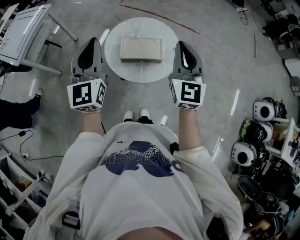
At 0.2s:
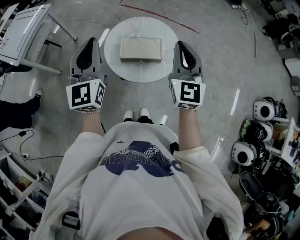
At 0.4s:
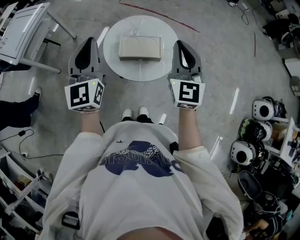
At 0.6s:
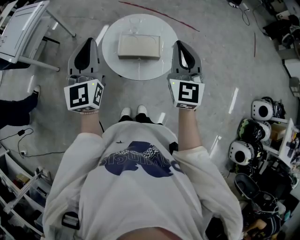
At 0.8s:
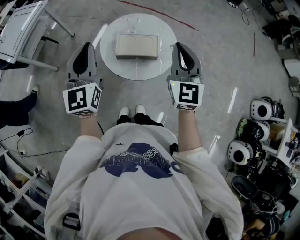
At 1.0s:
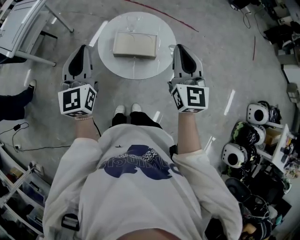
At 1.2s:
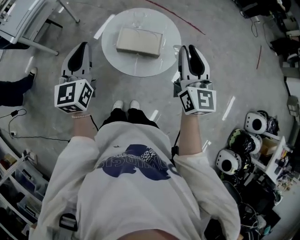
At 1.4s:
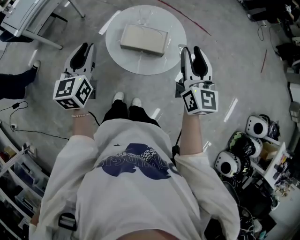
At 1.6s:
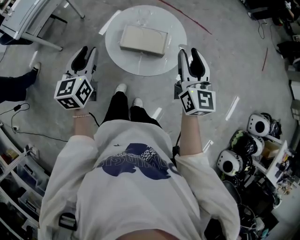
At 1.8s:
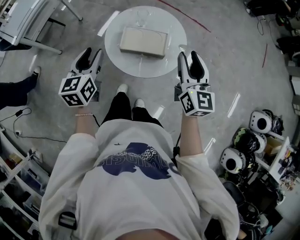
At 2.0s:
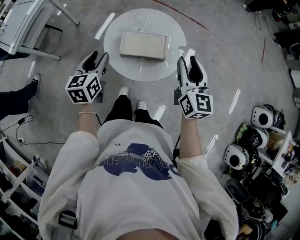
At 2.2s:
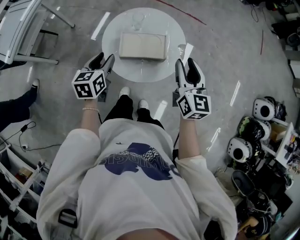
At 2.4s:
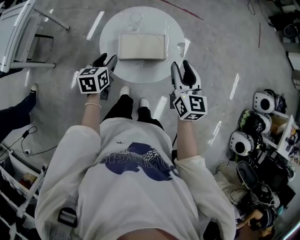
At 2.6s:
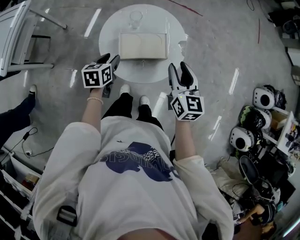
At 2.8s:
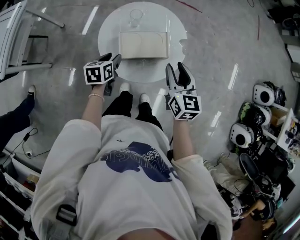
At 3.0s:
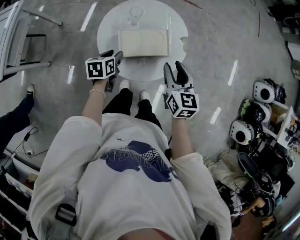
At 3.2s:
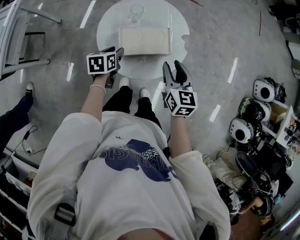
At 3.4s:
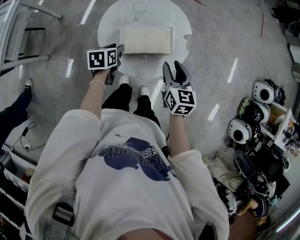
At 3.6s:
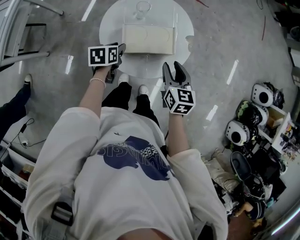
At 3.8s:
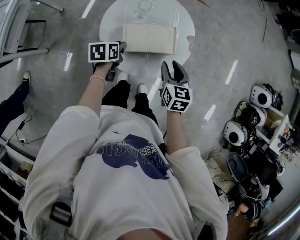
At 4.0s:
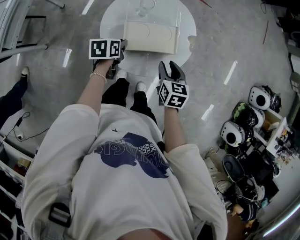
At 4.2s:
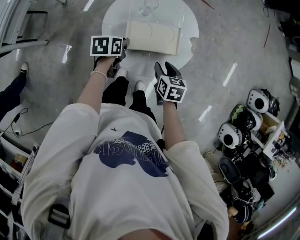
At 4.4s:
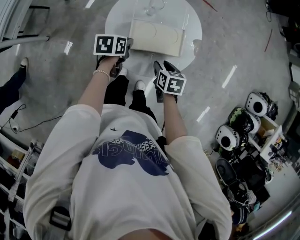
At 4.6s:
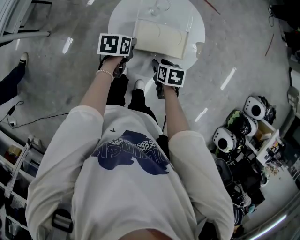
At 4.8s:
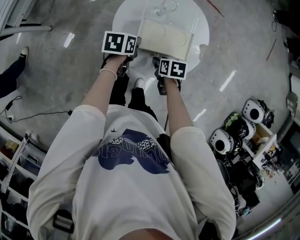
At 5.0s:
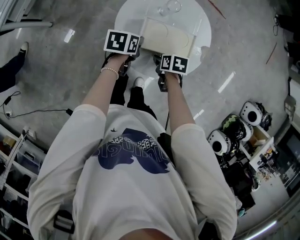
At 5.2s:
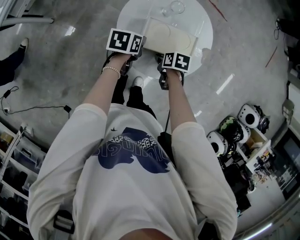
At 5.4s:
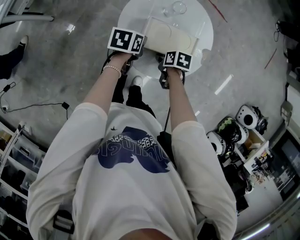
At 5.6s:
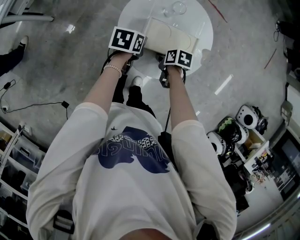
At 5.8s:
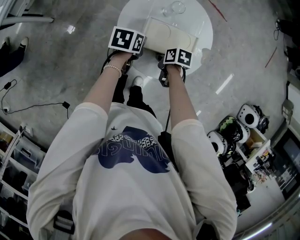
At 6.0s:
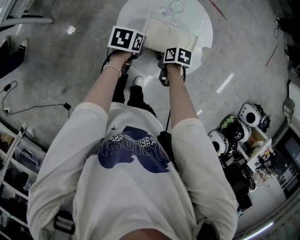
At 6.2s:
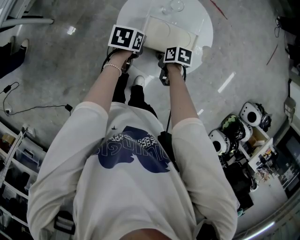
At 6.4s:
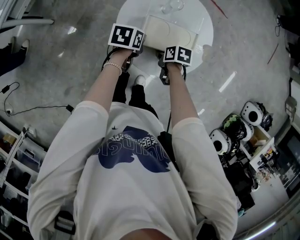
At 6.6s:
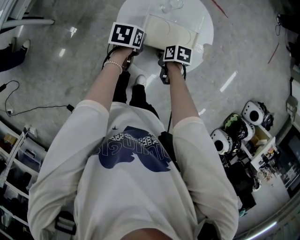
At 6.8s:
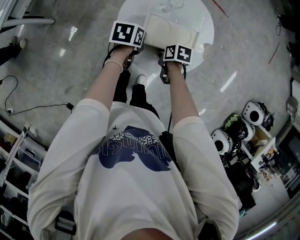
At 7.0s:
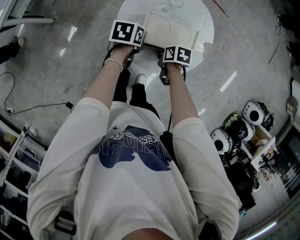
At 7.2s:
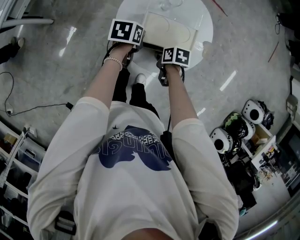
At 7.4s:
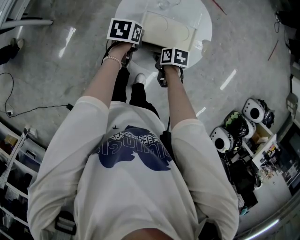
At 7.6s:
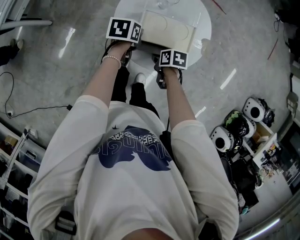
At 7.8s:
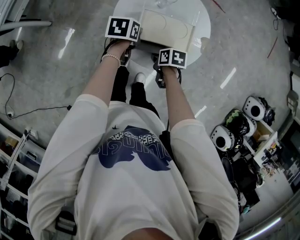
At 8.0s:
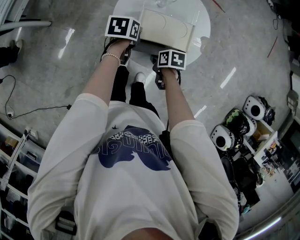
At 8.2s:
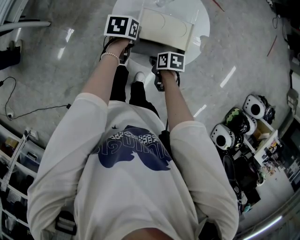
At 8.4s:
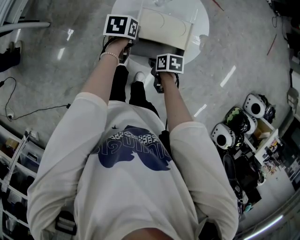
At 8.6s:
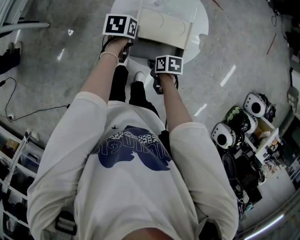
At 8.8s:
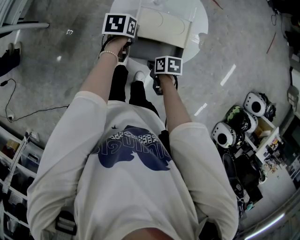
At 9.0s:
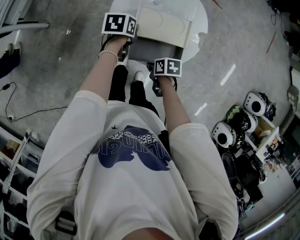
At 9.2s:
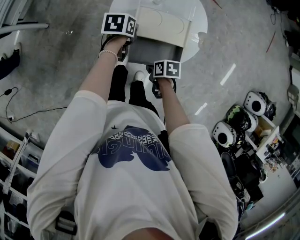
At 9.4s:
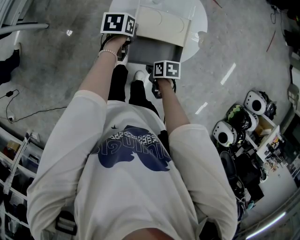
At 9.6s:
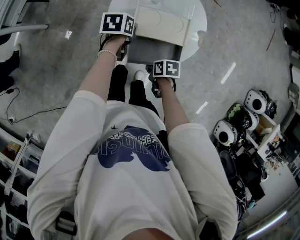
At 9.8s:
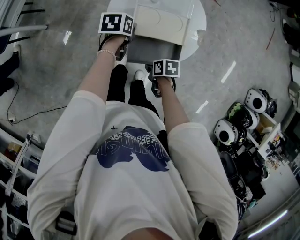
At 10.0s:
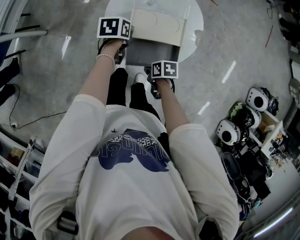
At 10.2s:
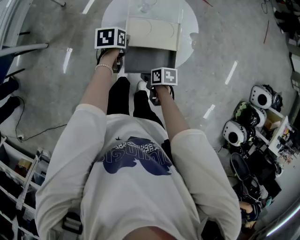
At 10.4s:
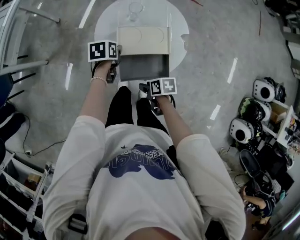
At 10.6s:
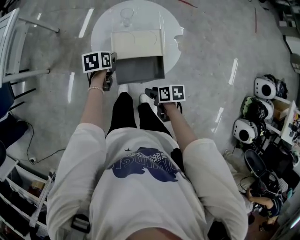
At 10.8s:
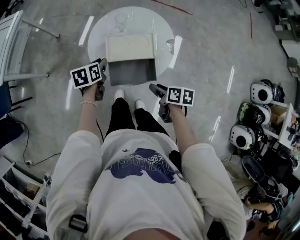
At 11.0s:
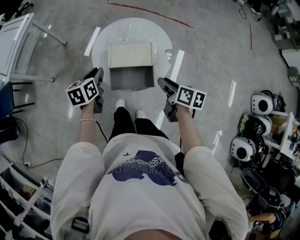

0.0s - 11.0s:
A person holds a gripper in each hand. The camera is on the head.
0.0s - 1.6s: The left gripper moves downward, approximately 10 cm, rotates about 30 degrees, and opens. The right gripper goes roughly 5 cm downward, changes its angle by some 20 degrees, and opens up.
1.6s - 3.2s: Both grippers travel together downward, about 25 cm. The right gripper swivels approximately 30 degrees. The left gripper tilts its fingers some 30 degrees downward.
3.2s - 4.8s: The right gripper is displaced downward by some 20 cm, and tips its fingers downward by roughly 40 degrees. Meanwhile the left gripper closes.
4.8s - 6.2s: The right gripper closes.
6.2s - 7.8s: There are only small adjustments of the grippers.
7.8s - 9.4s: The right gripper shifts by roughly 10 cm.
9.4s - 11.0s: Both grippers move upward, roughly 20 cm. The left gripper swivels some 30 degrees, while the right gripper turns by about 40 degrees, and opens its fingers.

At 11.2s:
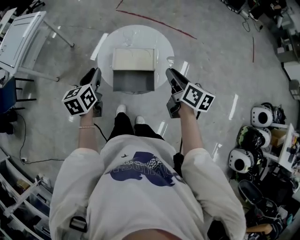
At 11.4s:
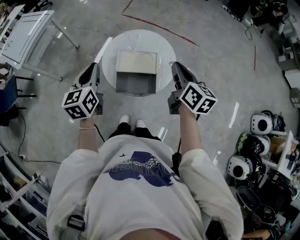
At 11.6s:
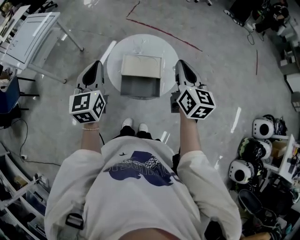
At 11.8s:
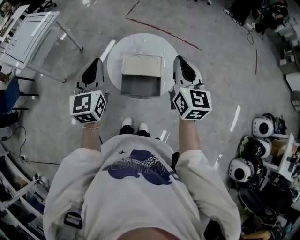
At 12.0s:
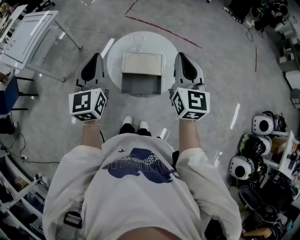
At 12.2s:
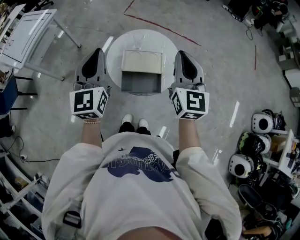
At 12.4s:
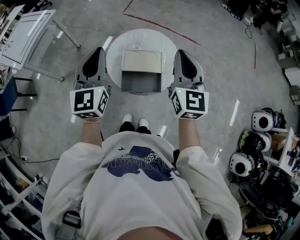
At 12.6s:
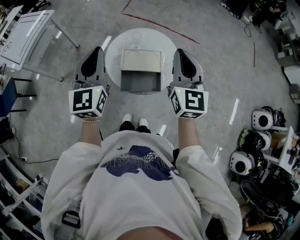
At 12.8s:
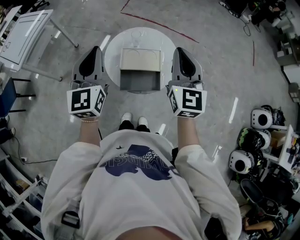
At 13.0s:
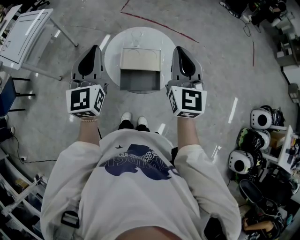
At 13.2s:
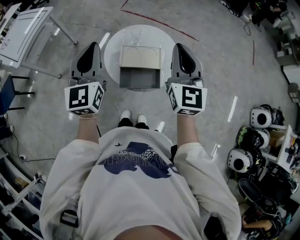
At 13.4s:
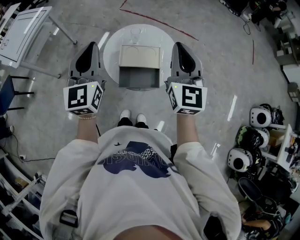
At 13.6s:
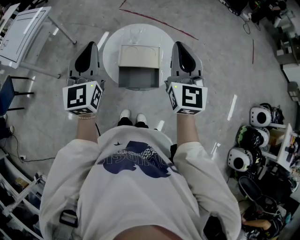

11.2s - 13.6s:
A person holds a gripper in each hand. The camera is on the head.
11.2s - 12.4s: The left gripper is displaced upward by some 15 cm, and changes its angle by approximately 40 degrees. The right gripper travels upward and to the left by roughly 20 cm, and rotates around the line of its fingers by roughly 50 degrees, counterclockwise from behind.
12.4s - 13.6s: Both grippers stay put.

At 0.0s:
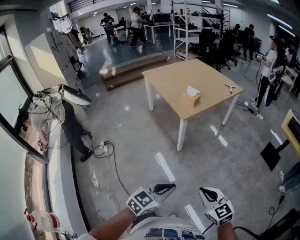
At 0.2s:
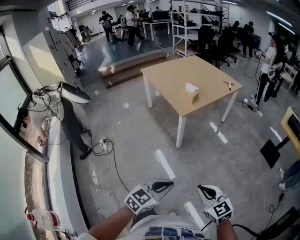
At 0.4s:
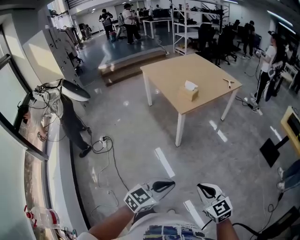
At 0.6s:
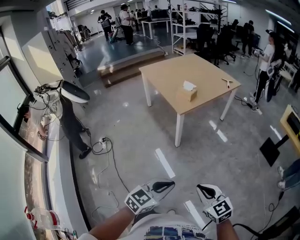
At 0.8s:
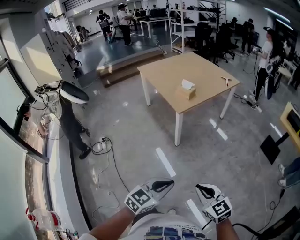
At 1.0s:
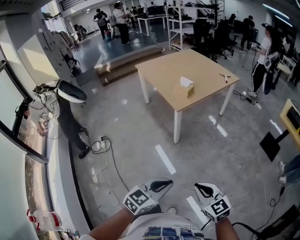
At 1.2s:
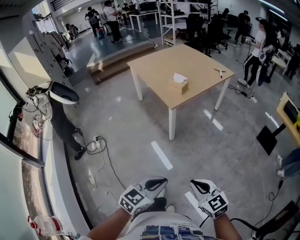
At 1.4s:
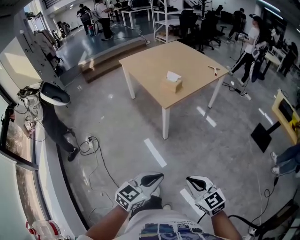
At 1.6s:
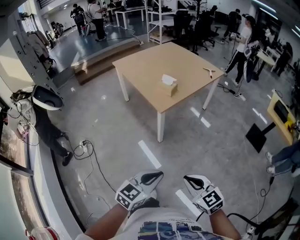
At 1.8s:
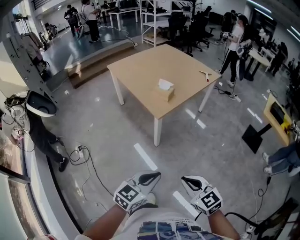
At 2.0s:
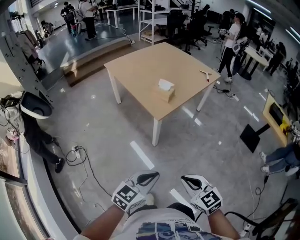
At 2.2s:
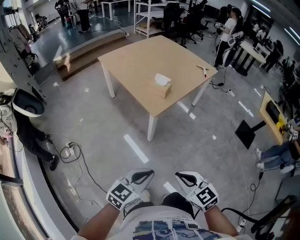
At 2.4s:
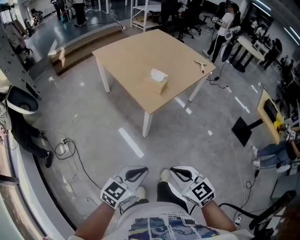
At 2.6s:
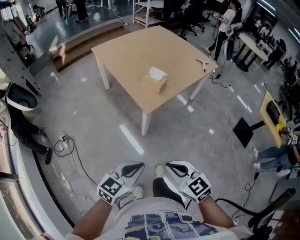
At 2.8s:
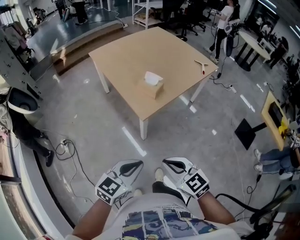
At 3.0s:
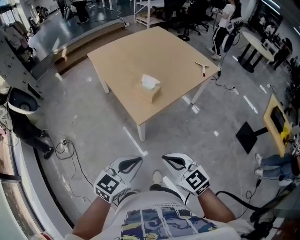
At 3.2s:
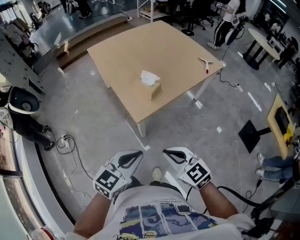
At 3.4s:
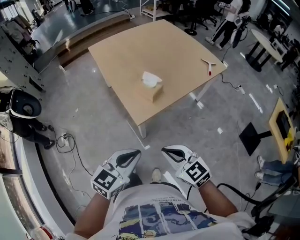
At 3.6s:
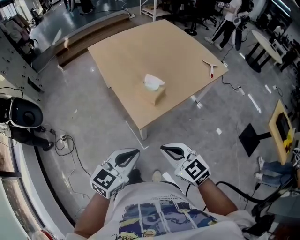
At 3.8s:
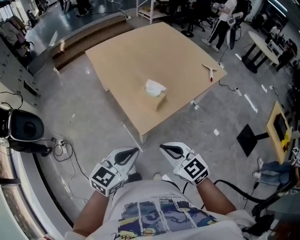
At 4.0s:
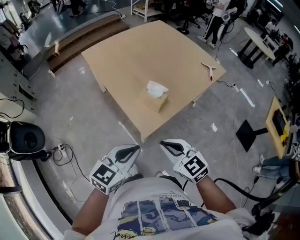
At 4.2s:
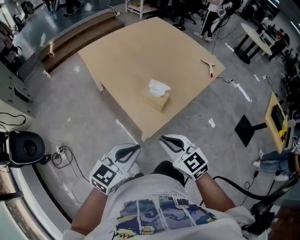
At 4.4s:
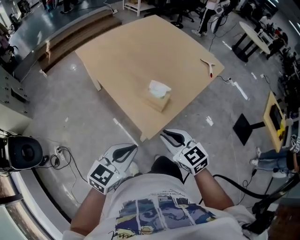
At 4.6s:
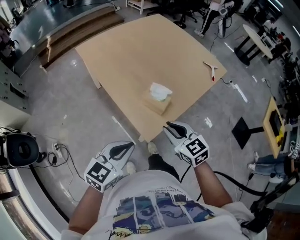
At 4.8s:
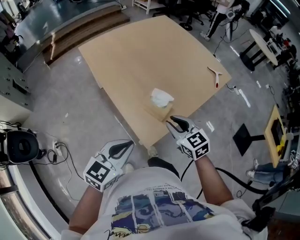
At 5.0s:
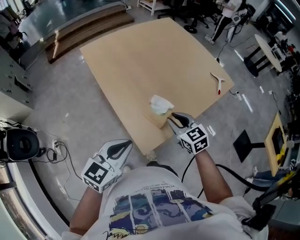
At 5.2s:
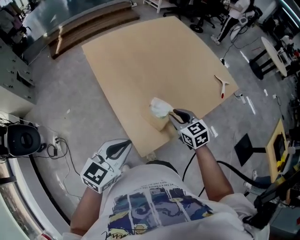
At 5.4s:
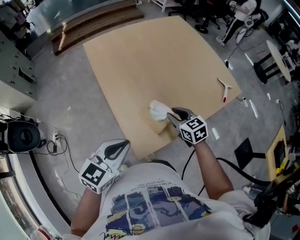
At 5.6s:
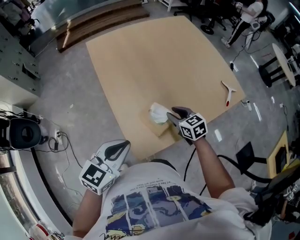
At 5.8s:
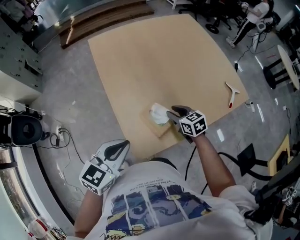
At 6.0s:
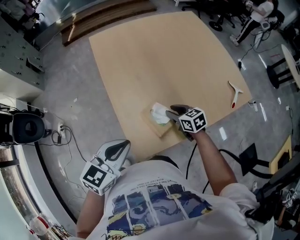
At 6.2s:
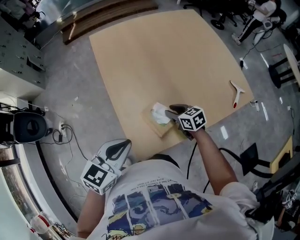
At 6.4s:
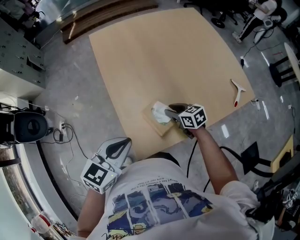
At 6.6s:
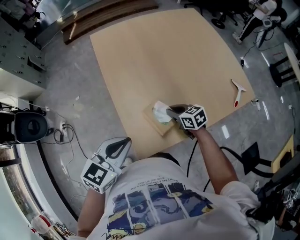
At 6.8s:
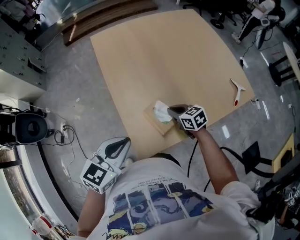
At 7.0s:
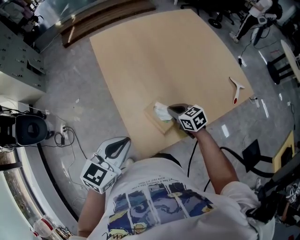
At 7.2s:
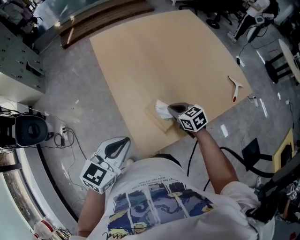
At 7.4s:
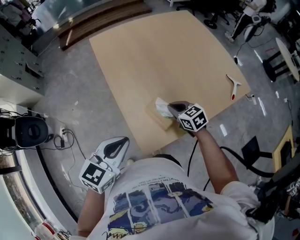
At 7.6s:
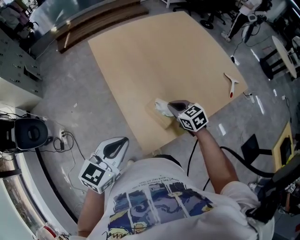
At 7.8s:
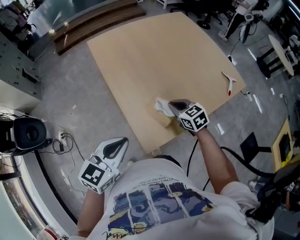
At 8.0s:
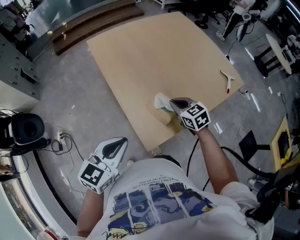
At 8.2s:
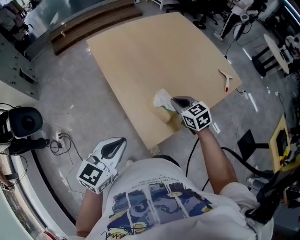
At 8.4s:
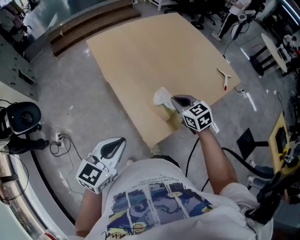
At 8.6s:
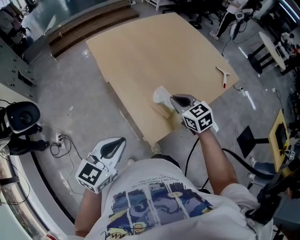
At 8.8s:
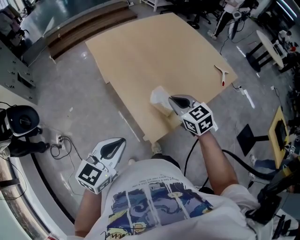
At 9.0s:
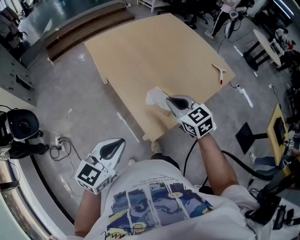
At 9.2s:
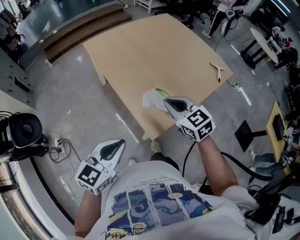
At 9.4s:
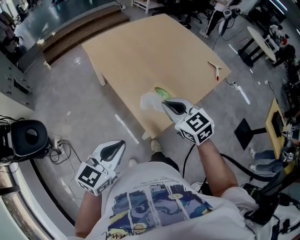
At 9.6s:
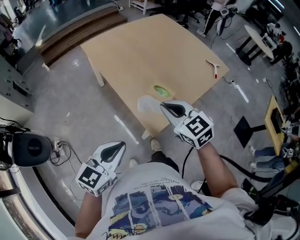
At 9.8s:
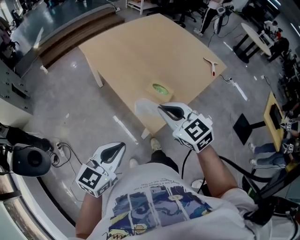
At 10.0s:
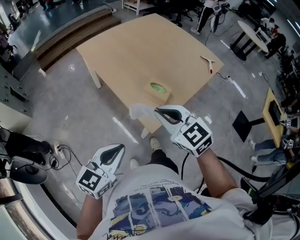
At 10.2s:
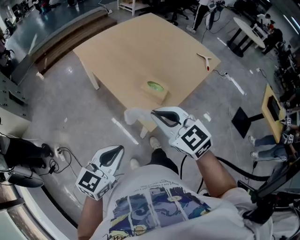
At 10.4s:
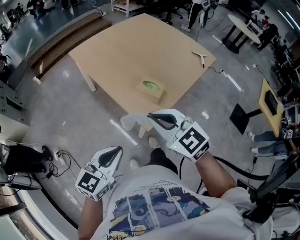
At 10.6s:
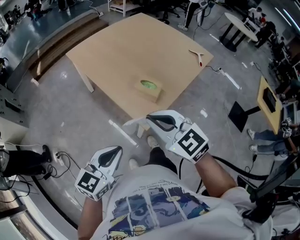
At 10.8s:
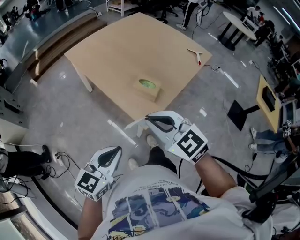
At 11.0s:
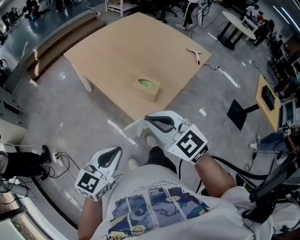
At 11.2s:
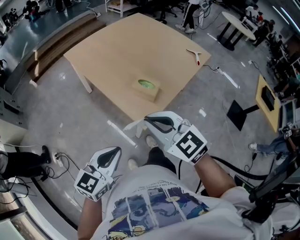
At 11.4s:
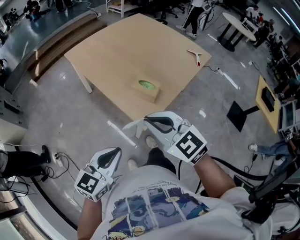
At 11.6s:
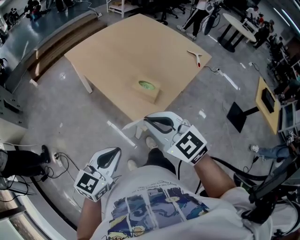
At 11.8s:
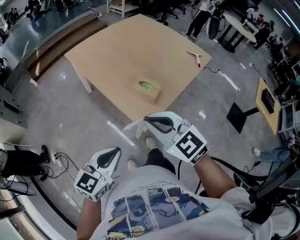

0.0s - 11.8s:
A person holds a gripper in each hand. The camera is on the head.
0.0s - 1.4s: Both grippers travel together forward, some 5 cm.
1.4s - 3.0s: Both grippers travel together forward, about 30 cm.
3.0s - 4.4s: The left gripper is displaced forward and to the left by approximately 20 cm. Meanwhile the right gripper travels forward by approximately 25 cm.
4.4s - 6.0s: The left gripper shifts some 15 cm forward, and turns by roughly 20 degrees. The right gripper shifts approximately 35 cm forward and downward, and turns by approximately 30 degrees.
6.0s - 7.4s: The right gripper ends up roughly 5 cm from where it was, and closes its fingers.
7.4s - 8.8s: The left gripper heads backward and to the left, covering approximately 10 cm. The right gripper travels upward and backward by about 15 cm.
8.8s - 10.4s: The left gripper shifts roughly 10 cm backward. The right gripper is displaced backward, upward and to the left by about 20 cm.
10.4s - 11.8s: There are only small adjustments of the grippers.
